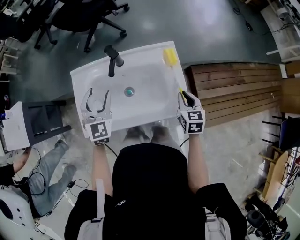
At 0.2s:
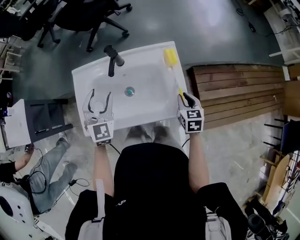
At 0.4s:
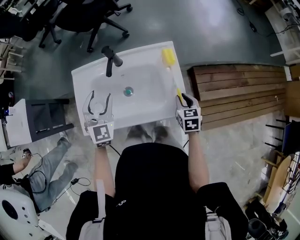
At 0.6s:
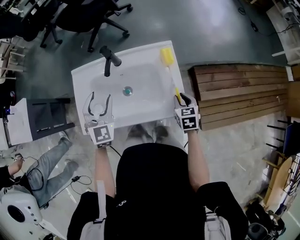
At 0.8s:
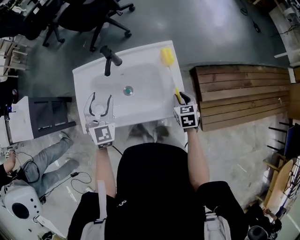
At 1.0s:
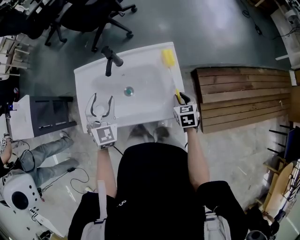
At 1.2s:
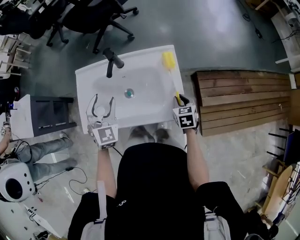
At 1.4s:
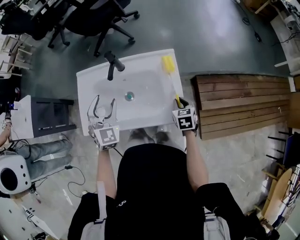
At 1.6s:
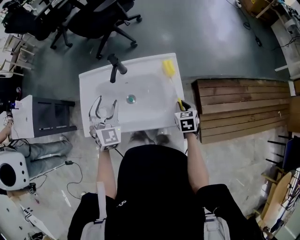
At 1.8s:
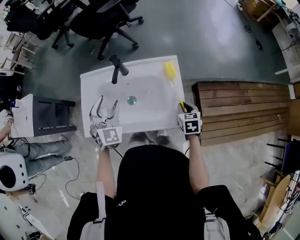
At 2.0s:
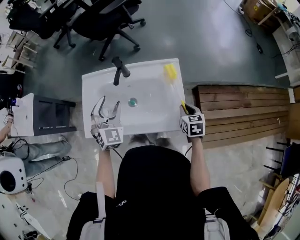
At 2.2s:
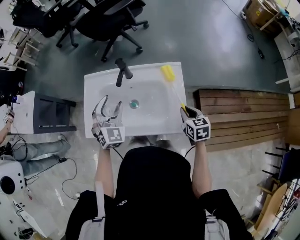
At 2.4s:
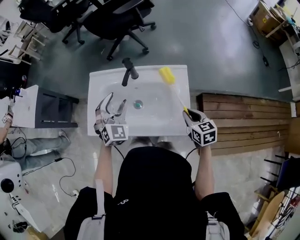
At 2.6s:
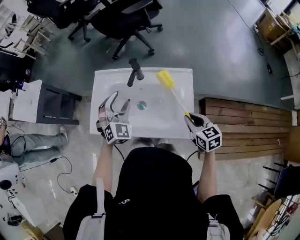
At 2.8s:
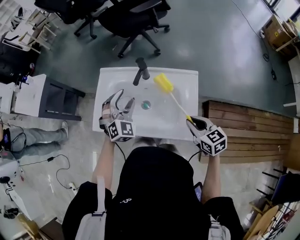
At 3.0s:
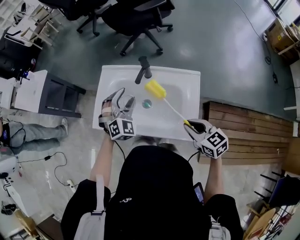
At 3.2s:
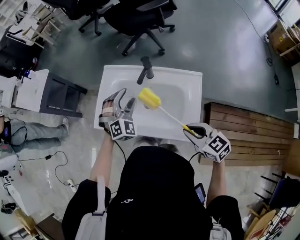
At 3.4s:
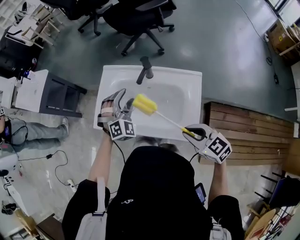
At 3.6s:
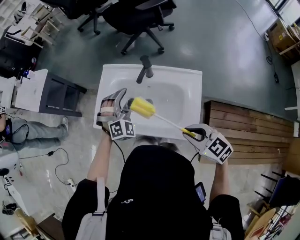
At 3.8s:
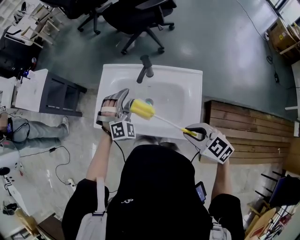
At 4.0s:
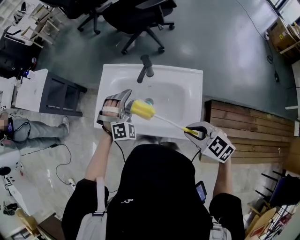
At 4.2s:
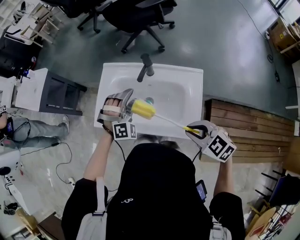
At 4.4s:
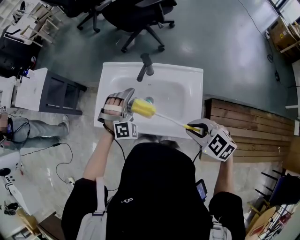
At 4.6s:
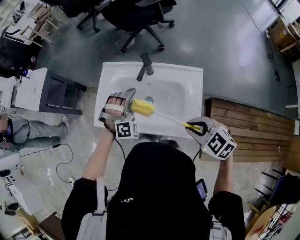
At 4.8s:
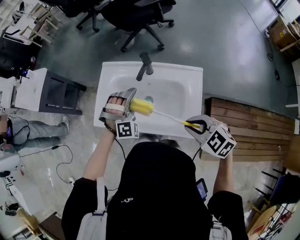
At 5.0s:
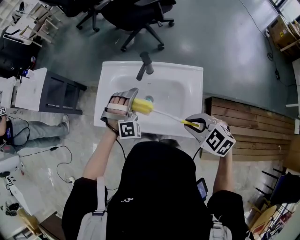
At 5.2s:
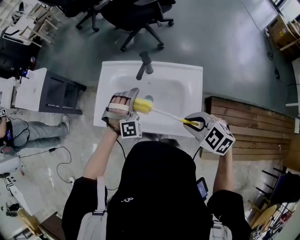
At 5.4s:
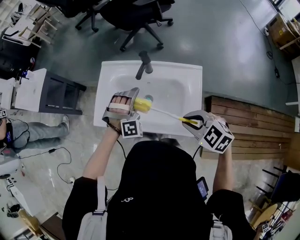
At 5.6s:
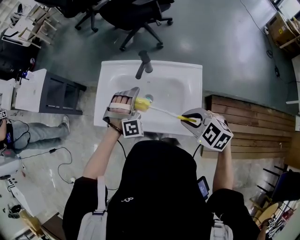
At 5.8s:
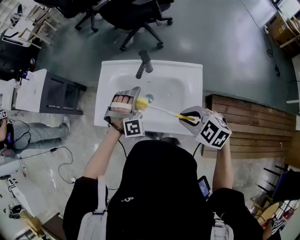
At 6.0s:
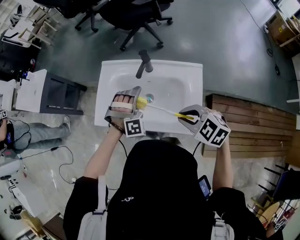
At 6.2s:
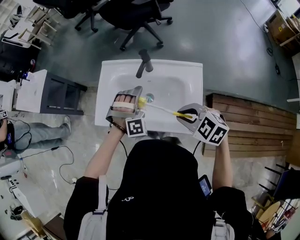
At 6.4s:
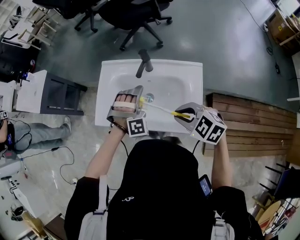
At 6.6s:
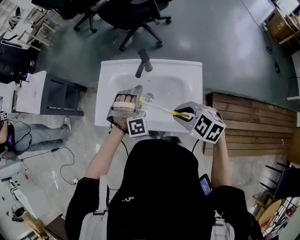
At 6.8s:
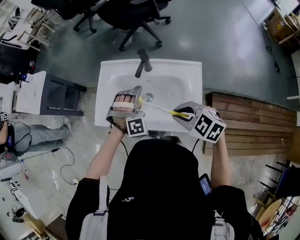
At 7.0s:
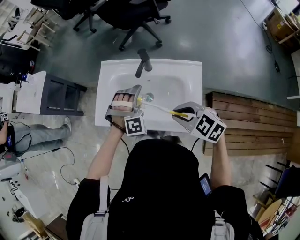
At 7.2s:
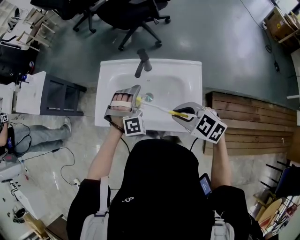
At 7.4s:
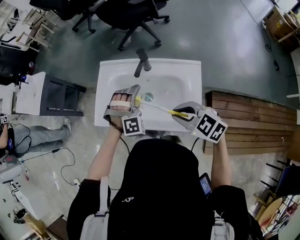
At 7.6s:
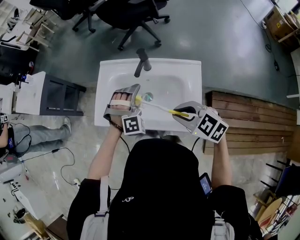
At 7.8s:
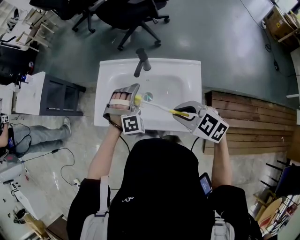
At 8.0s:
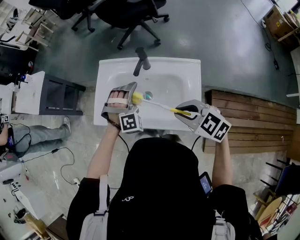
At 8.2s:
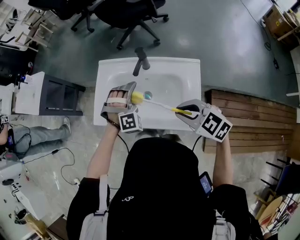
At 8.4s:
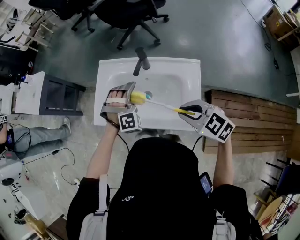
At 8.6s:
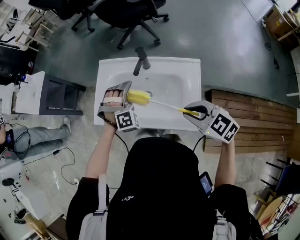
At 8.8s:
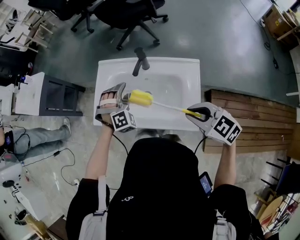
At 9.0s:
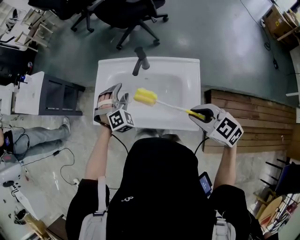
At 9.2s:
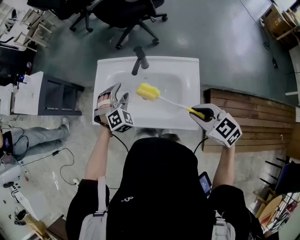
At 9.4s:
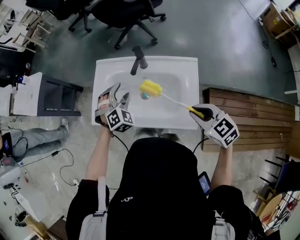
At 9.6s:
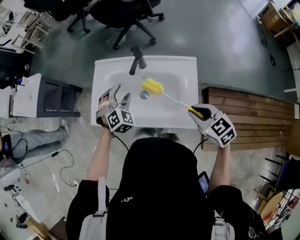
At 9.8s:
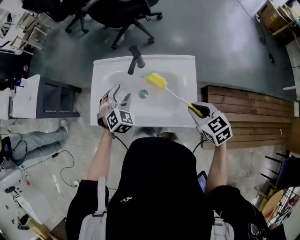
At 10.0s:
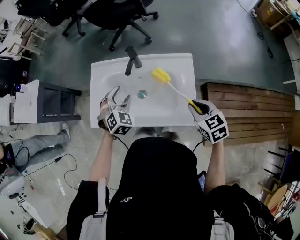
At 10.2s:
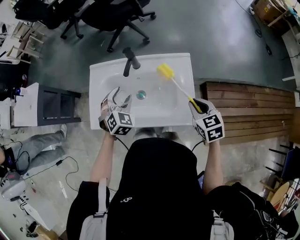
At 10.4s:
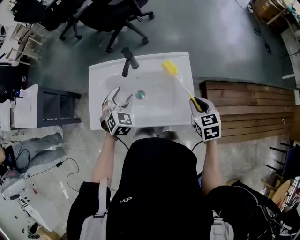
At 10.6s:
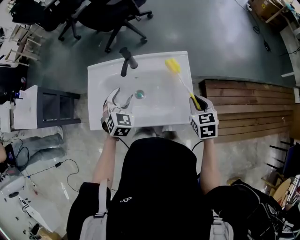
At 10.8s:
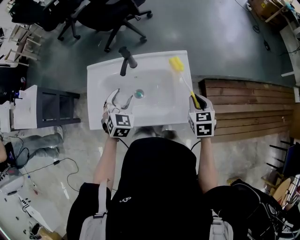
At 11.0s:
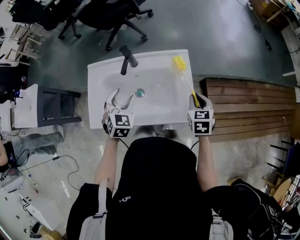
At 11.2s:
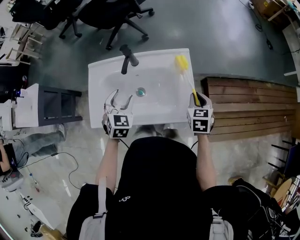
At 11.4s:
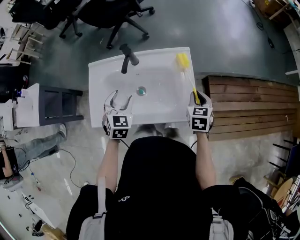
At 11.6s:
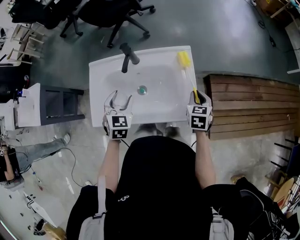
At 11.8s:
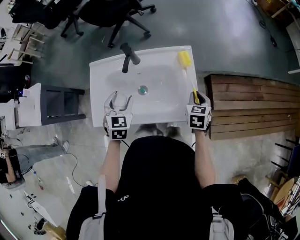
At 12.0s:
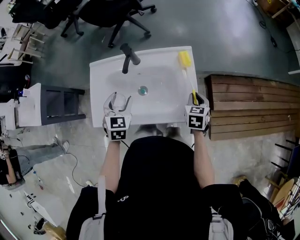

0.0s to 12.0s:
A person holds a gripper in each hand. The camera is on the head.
0.0s to 1.6s: The left gripper moves about 5 cm. Meanwhile the right gripper is displaced downward by approximately 5 cm.
1.6s to 3.0s: The right gripper travels upward by about 15 cm, and turns by about 50 degrees.
3.0s to 4.4s: The right gripper changes its angle by approximately 30 degrees; the left gripper rotates some 30 degrees.
4.4s to 6.0s: There are only small adjustments of the grippers.
6.0s to 7.6s: The grippers move only a little.
7.6s to 9.0s: The left gripper heads to the left, covering approximately 5 cm. Meanwhile the right gripper goes some 5 cm to the right.
9.0s to 10.4s: The right gripper travels downward by roughly 10 cm, and turns by approximately 50 degrees, while the left gripper rotates roughly 30 degrees.
10.4s to 12.0s: The right gripper goes about 10 cm downward, and rotates about 20 degrees.

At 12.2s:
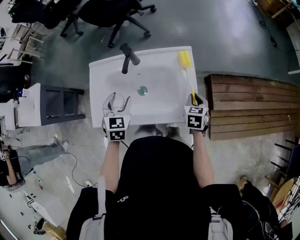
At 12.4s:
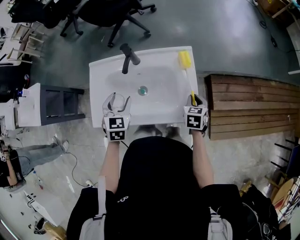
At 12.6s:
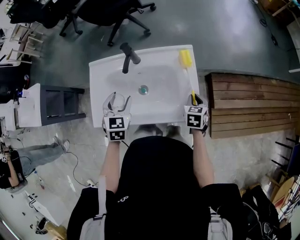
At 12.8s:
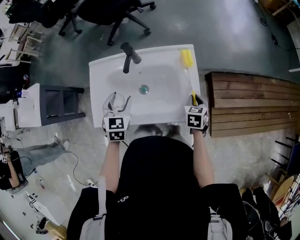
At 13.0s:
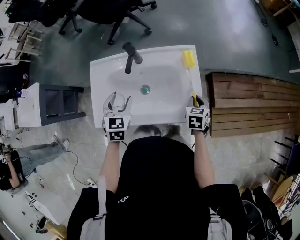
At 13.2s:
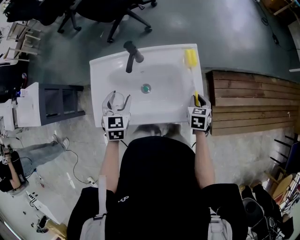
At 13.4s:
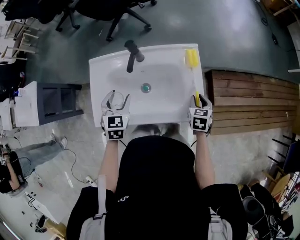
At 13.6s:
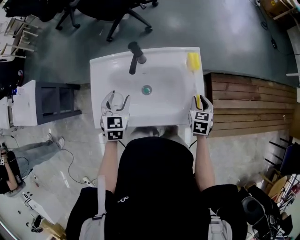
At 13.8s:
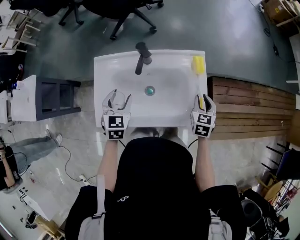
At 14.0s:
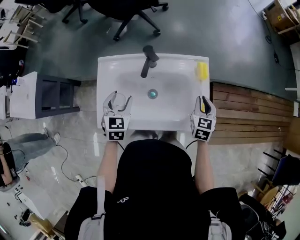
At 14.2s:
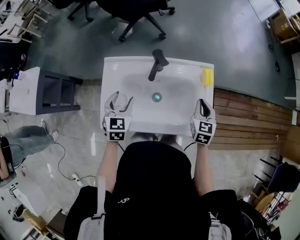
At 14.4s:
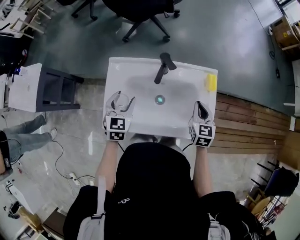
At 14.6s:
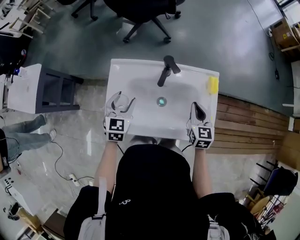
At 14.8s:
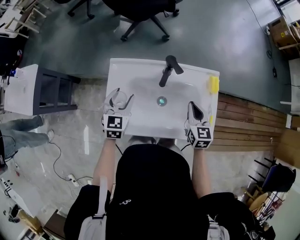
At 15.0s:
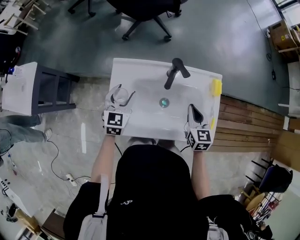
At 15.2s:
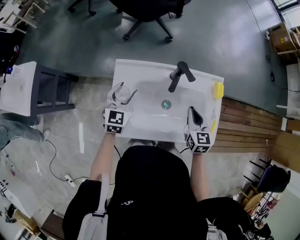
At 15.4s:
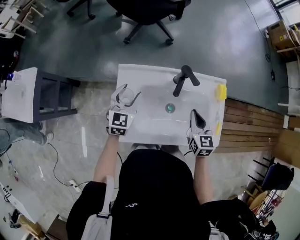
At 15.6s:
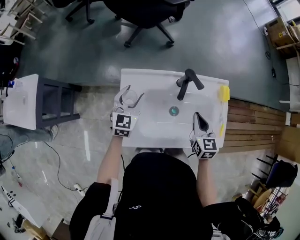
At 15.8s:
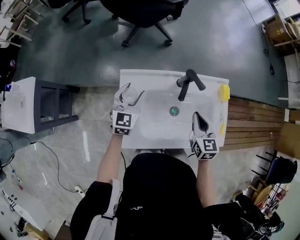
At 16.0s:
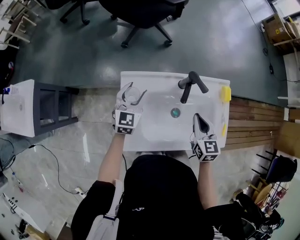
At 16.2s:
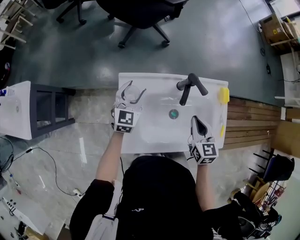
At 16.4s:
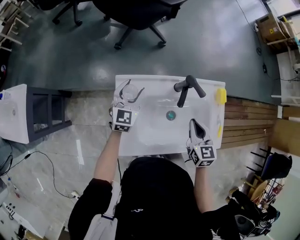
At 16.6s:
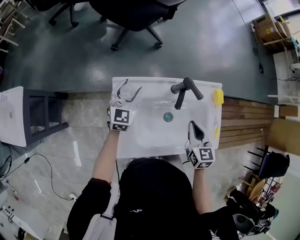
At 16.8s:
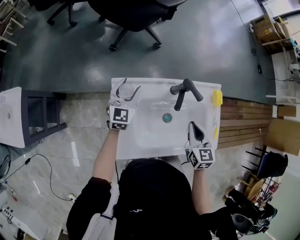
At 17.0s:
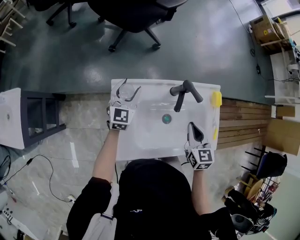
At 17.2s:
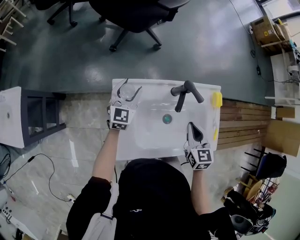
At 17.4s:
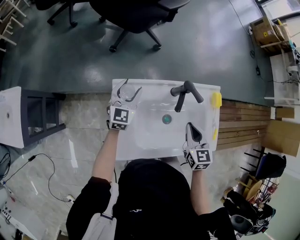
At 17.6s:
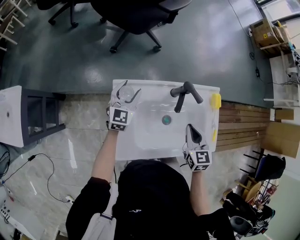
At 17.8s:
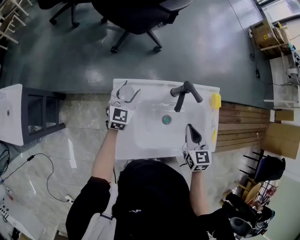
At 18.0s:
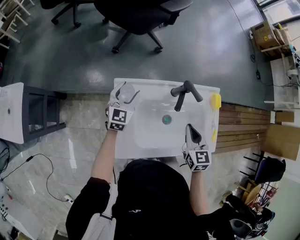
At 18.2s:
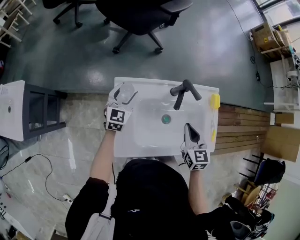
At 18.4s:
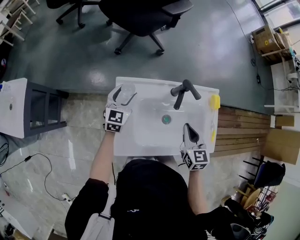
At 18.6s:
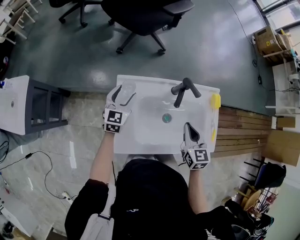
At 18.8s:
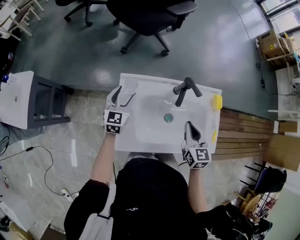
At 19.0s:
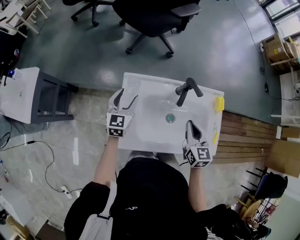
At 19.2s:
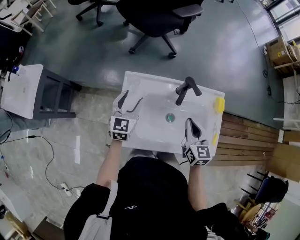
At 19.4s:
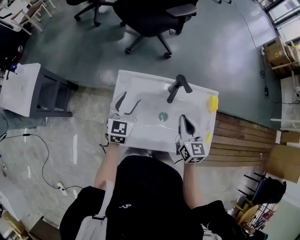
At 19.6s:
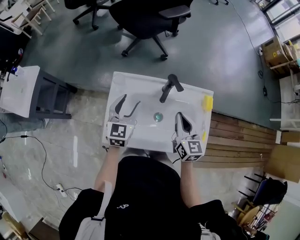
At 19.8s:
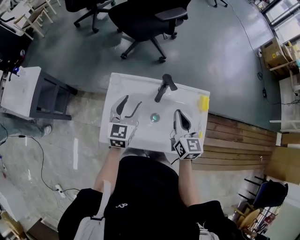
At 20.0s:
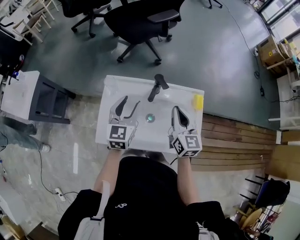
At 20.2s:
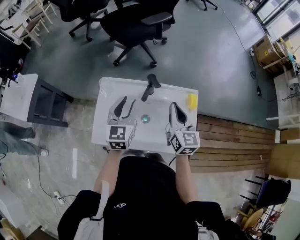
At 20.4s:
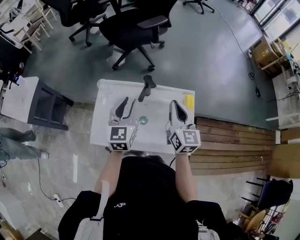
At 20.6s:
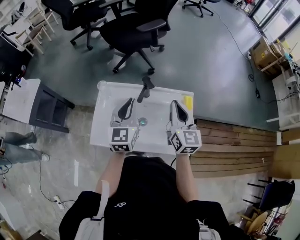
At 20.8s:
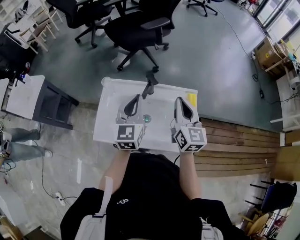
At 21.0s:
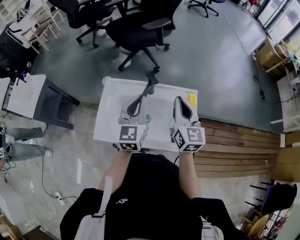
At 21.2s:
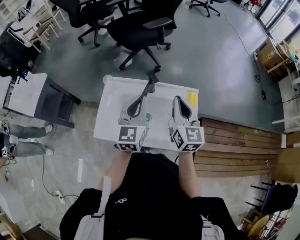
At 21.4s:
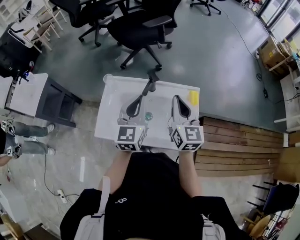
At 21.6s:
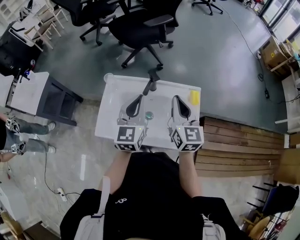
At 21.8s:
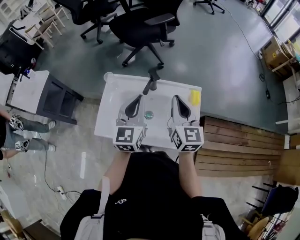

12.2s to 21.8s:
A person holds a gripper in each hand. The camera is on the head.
12.2s to 13.8s: The left gripper travels to the left by some 5 cm.
13.8s to 15.4s: The right gripper moves to the left, some 20 cm, and closes, while the left gripper moves to the left and forward, some 15 cm.
15.4s to 17.0s: The left gripper shifts some 10 cm forward.
17.0s to 18.6s: The left gripper heads backward, covering about 5 cm.
18.6s to 20.2s: The right gripper moves upward and to the right, roughly 15 cm, and changes its angle by approximately 20 degrees, while the left gripper shifts some 25 cm upward, to the right and backward, and closes its fingers.
20.2s to 21.8s: The left gripper travels upward and to the right by about 10 cm, and closes its fingers. The right gripper changes place by approximately 5 cm.

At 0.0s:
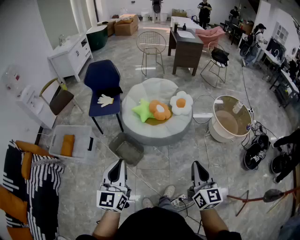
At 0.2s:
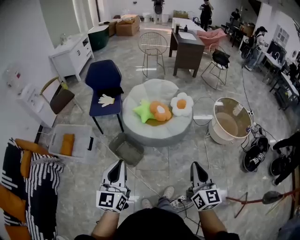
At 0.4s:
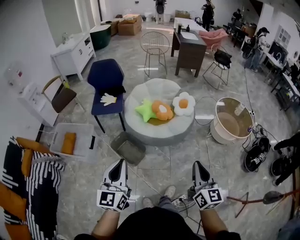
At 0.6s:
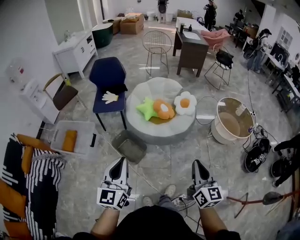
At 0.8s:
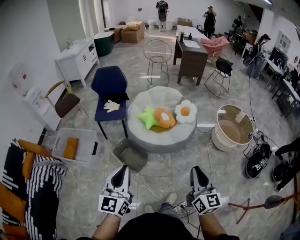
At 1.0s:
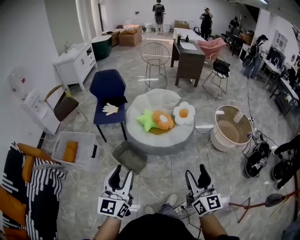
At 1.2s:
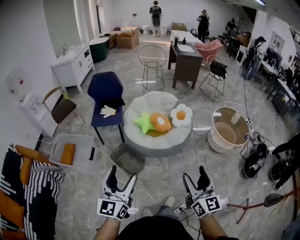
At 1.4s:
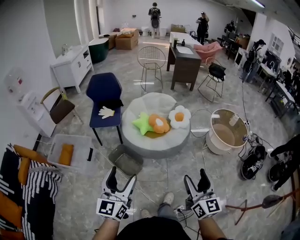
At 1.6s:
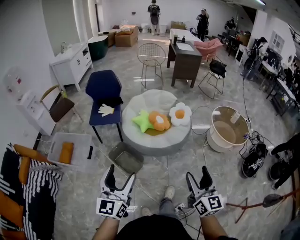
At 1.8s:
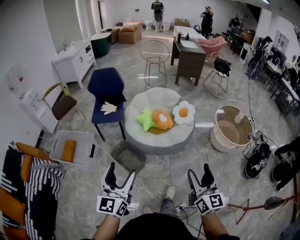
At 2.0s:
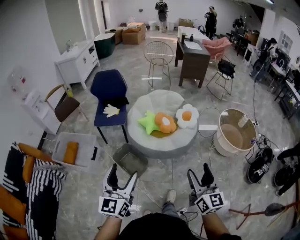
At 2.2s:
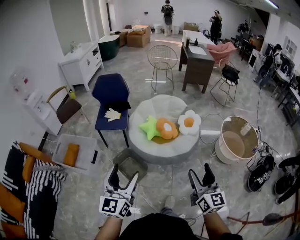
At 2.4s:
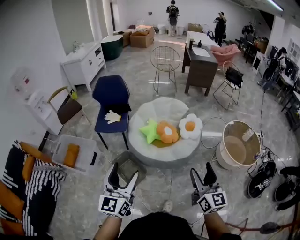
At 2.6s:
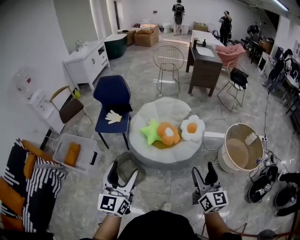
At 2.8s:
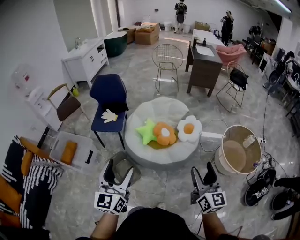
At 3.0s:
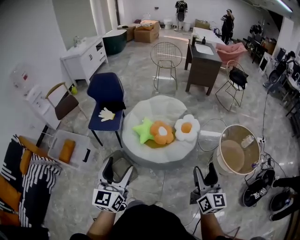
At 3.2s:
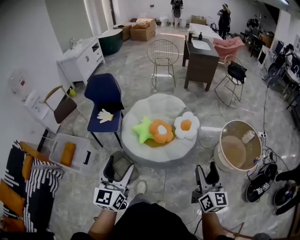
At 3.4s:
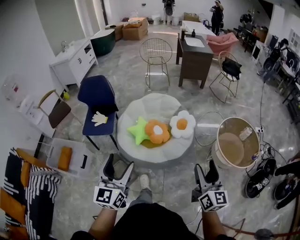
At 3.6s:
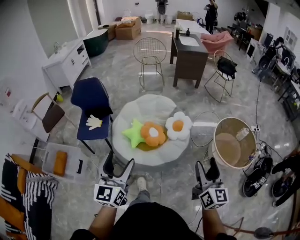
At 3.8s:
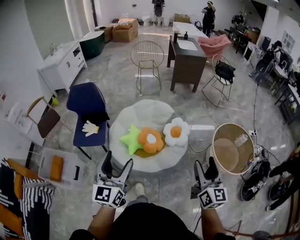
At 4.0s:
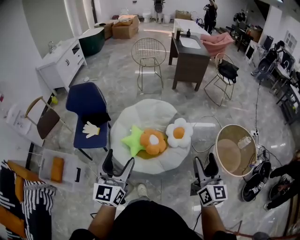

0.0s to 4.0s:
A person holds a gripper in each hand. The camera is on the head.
0.0s to 1.4s: The right gripper opens. The left gripper opens its fingers.
1.4s to 2.6s: The grippers both shift forward by some 20 cm.
2.6s to 4.0s: Both grippers move forward, approximately 25 cm.
